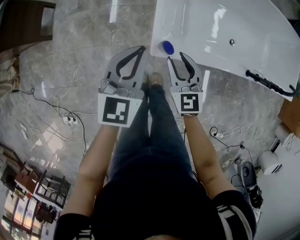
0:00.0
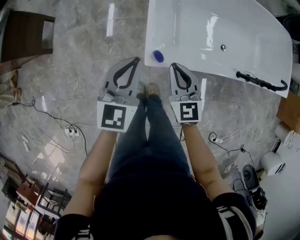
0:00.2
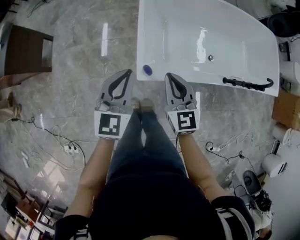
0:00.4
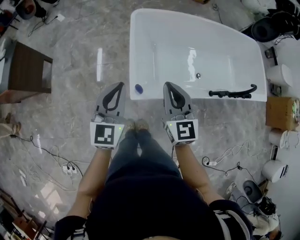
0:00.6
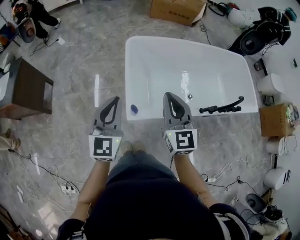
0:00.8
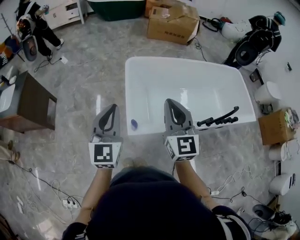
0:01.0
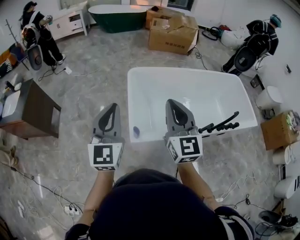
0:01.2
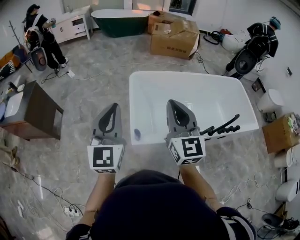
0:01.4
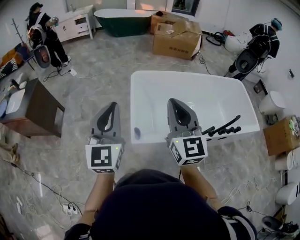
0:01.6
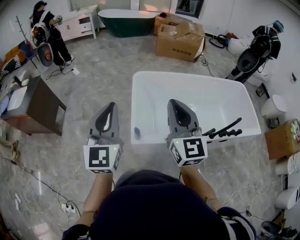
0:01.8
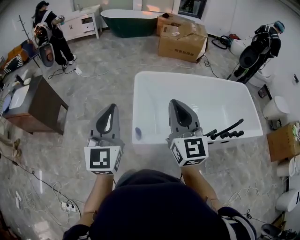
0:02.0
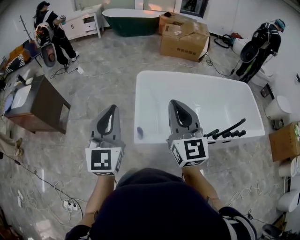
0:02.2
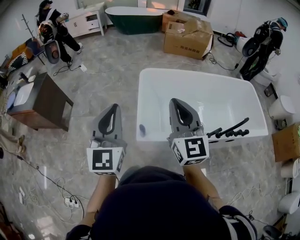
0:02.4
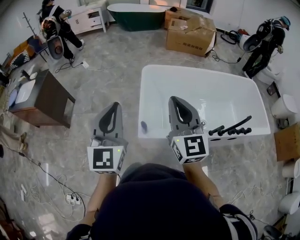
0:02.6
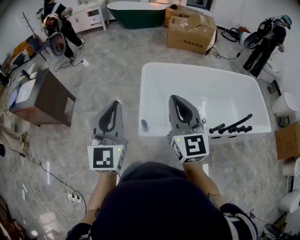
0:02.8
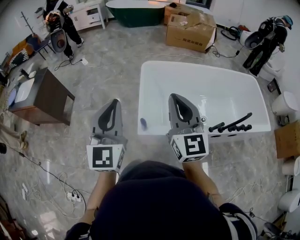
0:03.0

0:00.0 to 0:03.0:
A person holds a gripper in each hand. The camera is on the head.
0:00.0 to 0:01.6: The two grippers go about 40 cm upward. The right gripper changes its angle by roughly 30 degrees, and closes its fingers; the left gripper turns by some 30 degrees.
0:01.6 to 0:03.0: The grippers stay close to where they were, moving slightly.

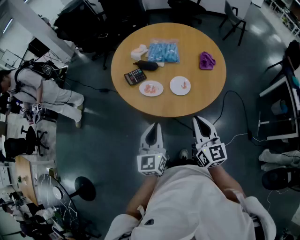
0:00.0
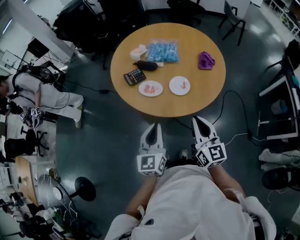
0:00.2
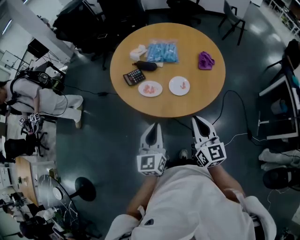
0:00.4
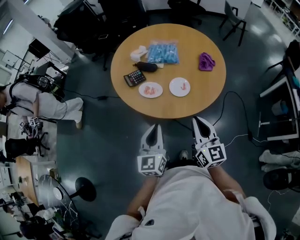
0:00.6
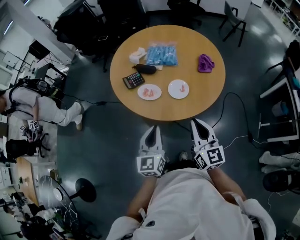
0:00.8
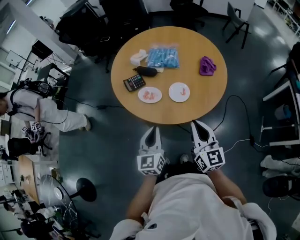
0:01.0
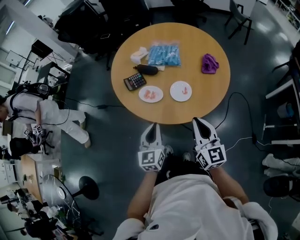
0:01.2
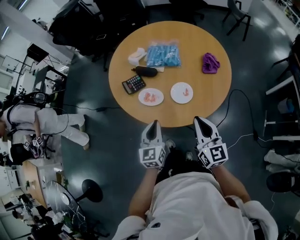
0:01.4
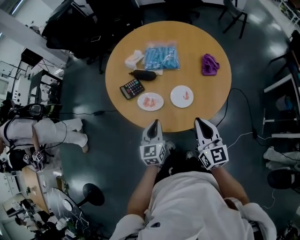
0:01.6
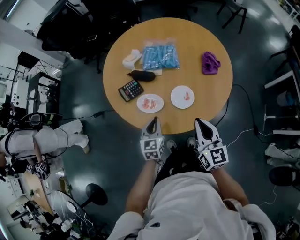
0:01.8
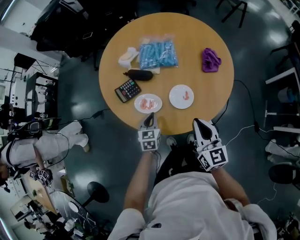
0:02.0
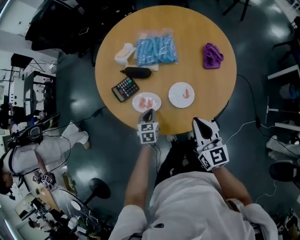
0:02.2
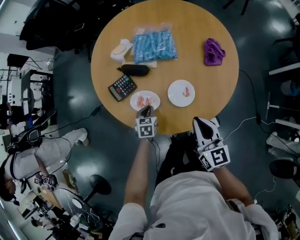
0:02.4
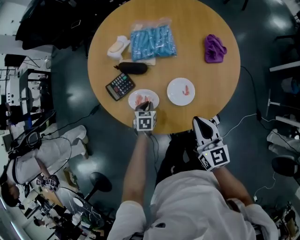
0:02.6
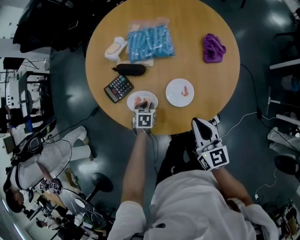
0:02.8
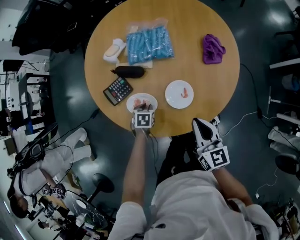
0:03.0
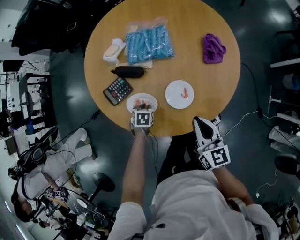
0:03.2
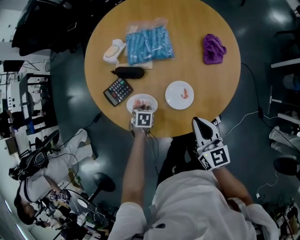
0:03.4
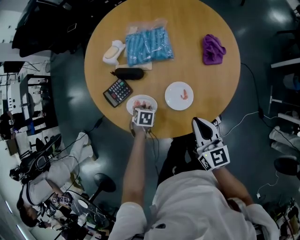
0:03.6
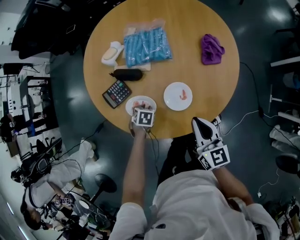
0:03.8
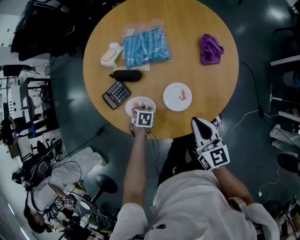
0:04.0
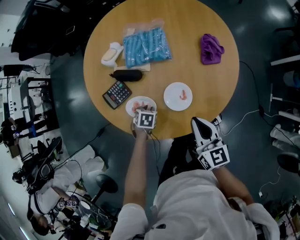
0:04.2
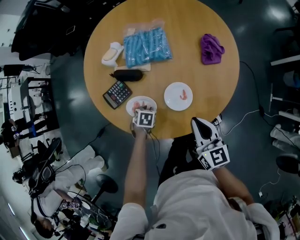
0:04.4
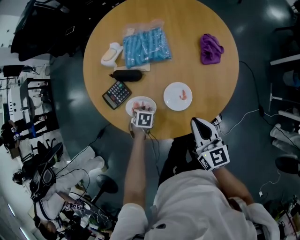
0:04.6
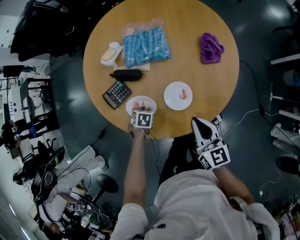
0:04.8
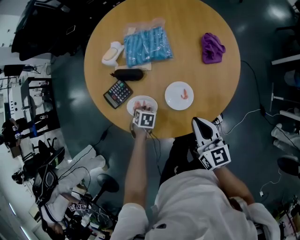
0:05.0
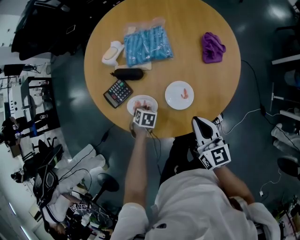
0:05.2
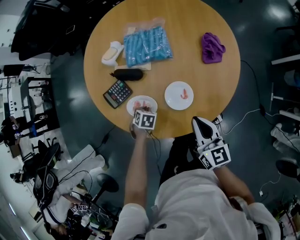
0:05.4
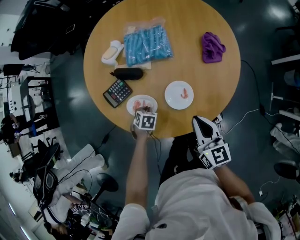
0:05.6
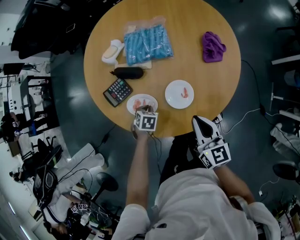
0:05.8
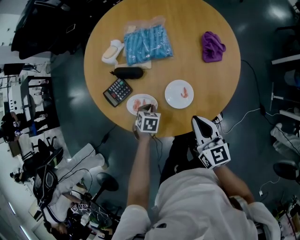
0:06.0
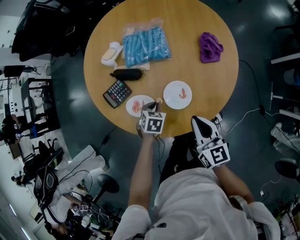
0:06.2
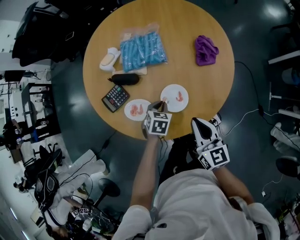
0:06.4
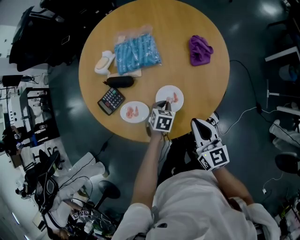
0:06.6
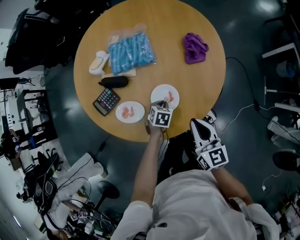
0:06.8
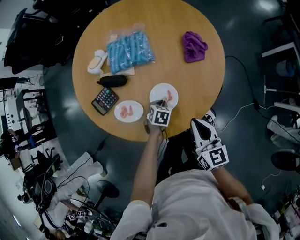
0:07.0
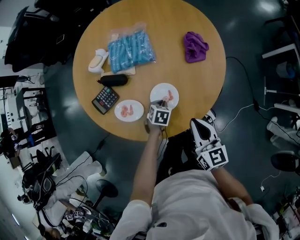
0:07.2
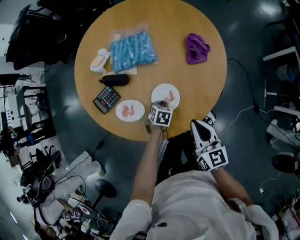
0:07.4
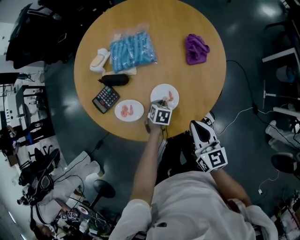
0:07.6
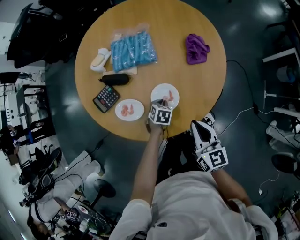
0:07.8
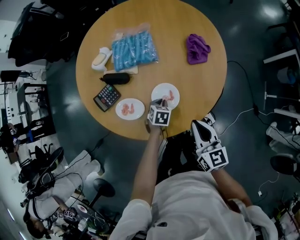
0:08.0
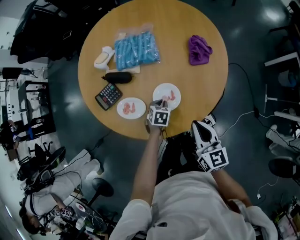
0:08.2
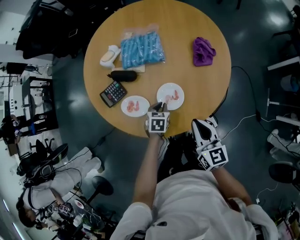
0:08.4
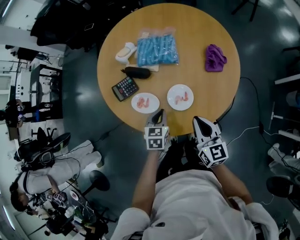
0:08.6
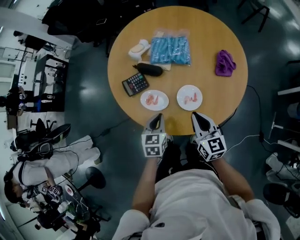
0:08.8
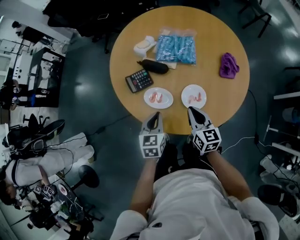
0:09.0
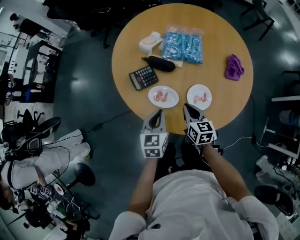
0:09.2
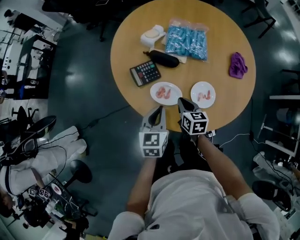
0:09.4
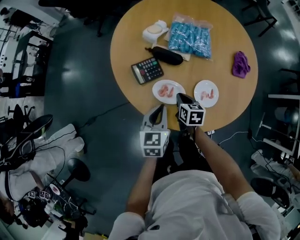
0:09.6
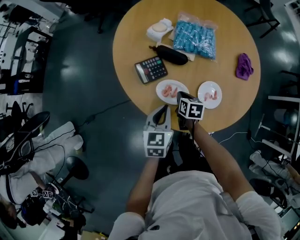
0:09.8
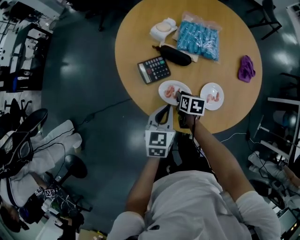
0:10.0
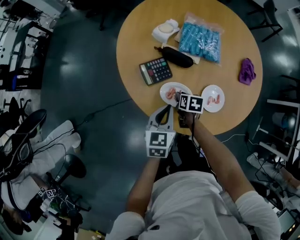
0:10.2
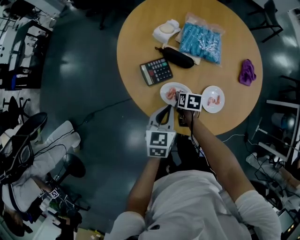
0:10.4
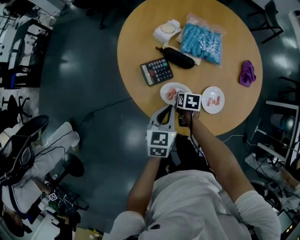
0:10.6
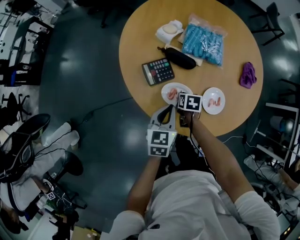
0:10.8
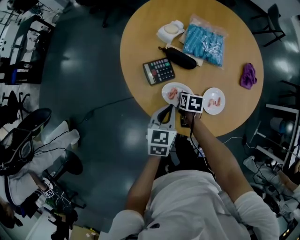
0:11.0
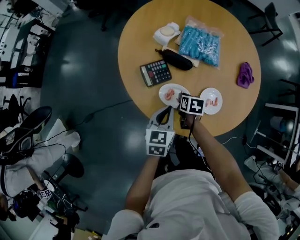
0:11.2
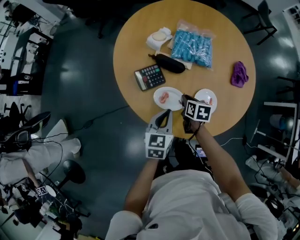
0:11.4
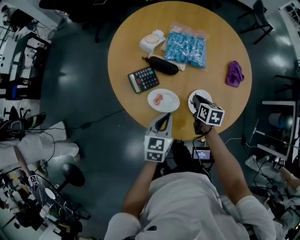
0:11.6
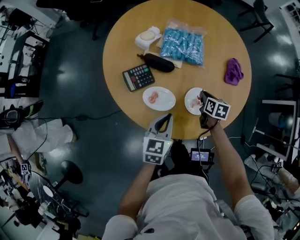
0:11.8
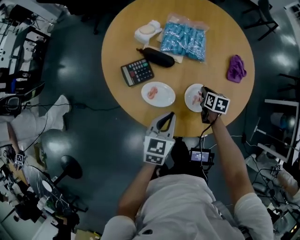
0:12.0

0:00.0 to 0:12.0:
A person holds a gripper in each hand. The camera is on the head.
0:00.0 to 0:01.6: The right gripper goes about 10 cm forward. Meanwhile the left gripper moves forward and downward, roughly 20 cm.
0:01.6 to 0:03.0: The right gripper shifts approximately 15 cm downward and forward; the left gripper travels downward and forward by approximately 25 cm, and tips its fingers downward by approximately 50 degrees.
0:03.0 to 0:06.0: The grippers make only small movements.
0:06.0 to 0:07.6: The left gripper goes about 15 cm to the right. The right gripper heads to the right, covering approximately 5 cm.
0:07.6 to 0:09.0: The right gripper is displaced to the left by some 15 cm. Meanwhile the left gripper moves upward, to the left and backward, approximately 30 cm, and points its fingers some 30 degrees further upward.
0:09.0 to 0:10.4: The left gripper travels to the left and forward by approximately 10 cm. The right gripper goes roughly 25 cm downward, to the left and forward, points its fingers approximately 40 degrees further downward, and opens its fingers.
0:10.4 to 0:12.0: The right gripper shifts some 20 cm to the right. Meanwhile the left gripper shifts roughly 10 cm to the right.

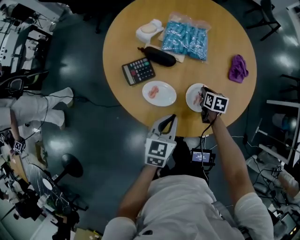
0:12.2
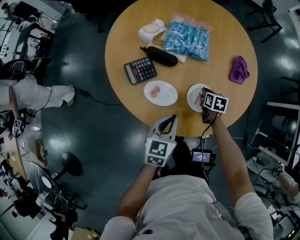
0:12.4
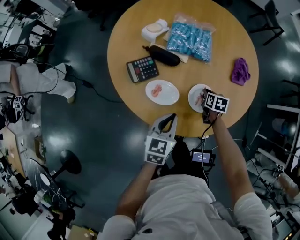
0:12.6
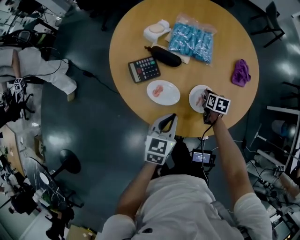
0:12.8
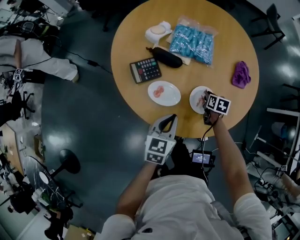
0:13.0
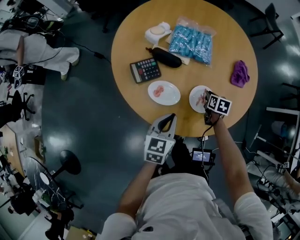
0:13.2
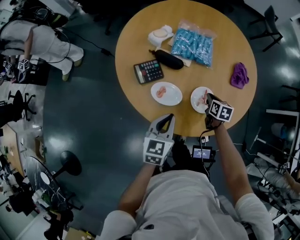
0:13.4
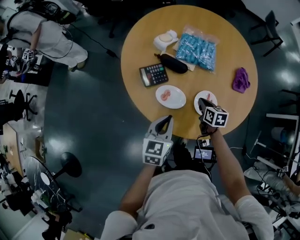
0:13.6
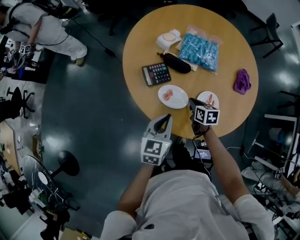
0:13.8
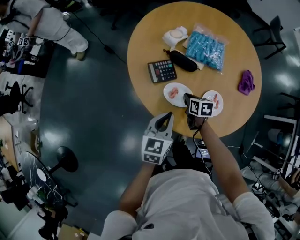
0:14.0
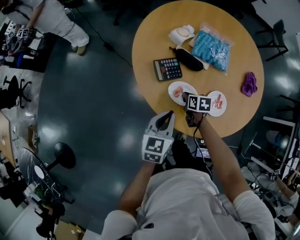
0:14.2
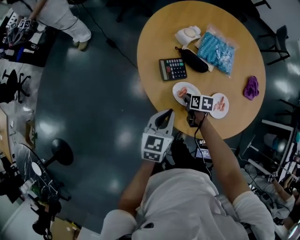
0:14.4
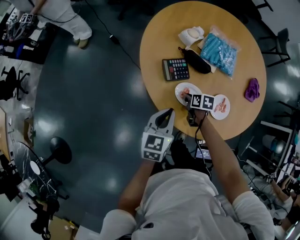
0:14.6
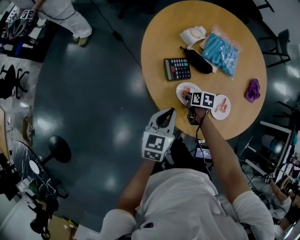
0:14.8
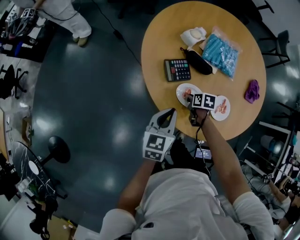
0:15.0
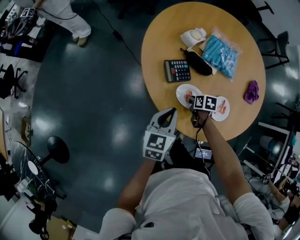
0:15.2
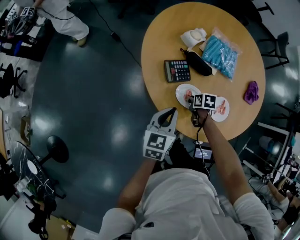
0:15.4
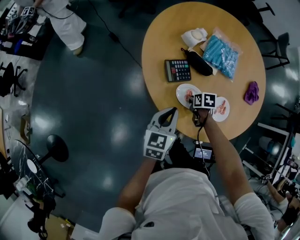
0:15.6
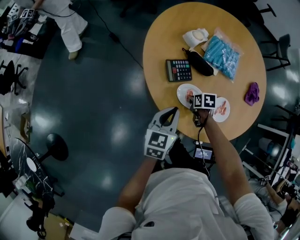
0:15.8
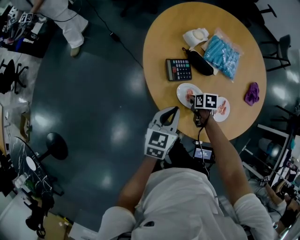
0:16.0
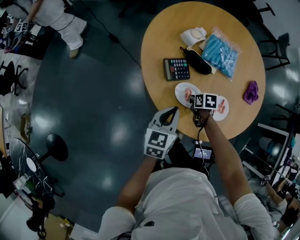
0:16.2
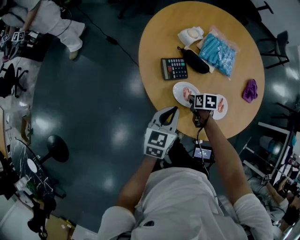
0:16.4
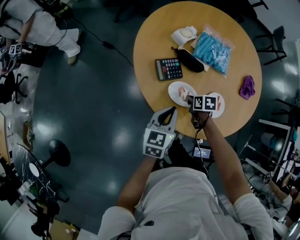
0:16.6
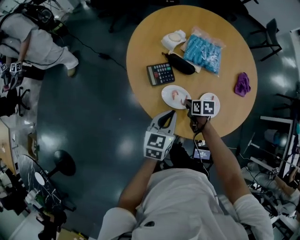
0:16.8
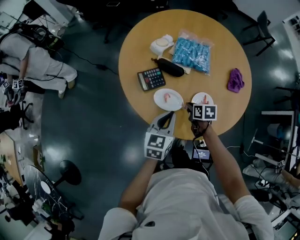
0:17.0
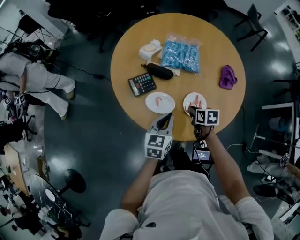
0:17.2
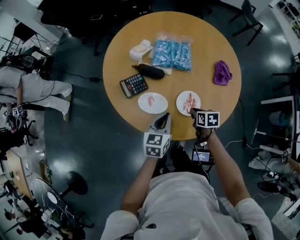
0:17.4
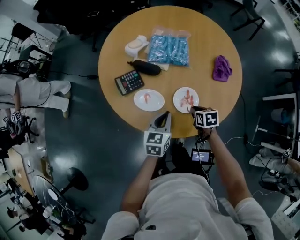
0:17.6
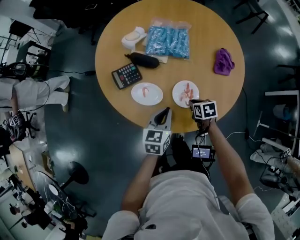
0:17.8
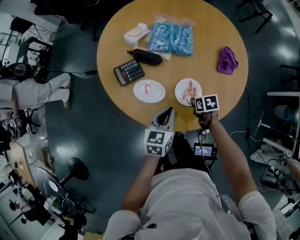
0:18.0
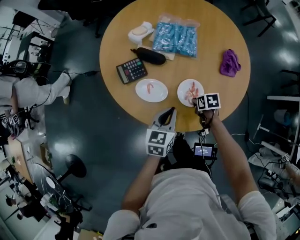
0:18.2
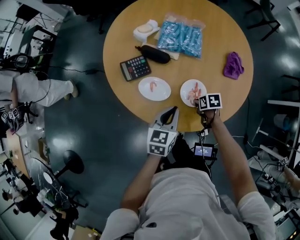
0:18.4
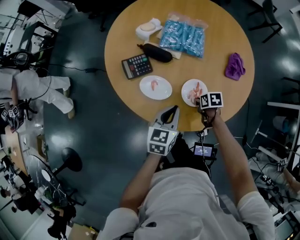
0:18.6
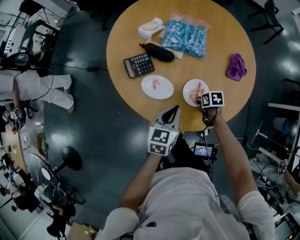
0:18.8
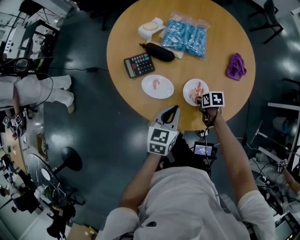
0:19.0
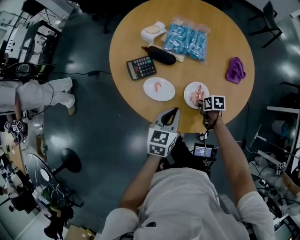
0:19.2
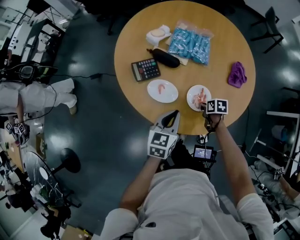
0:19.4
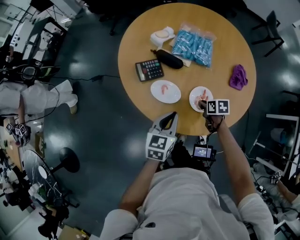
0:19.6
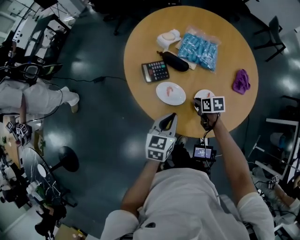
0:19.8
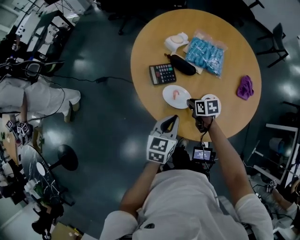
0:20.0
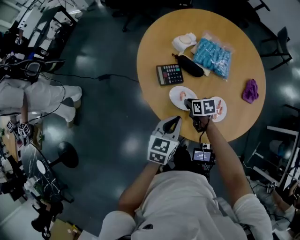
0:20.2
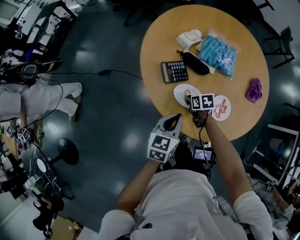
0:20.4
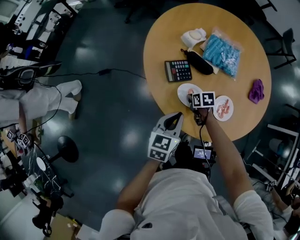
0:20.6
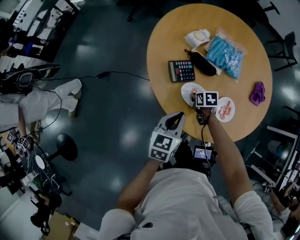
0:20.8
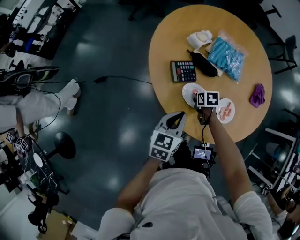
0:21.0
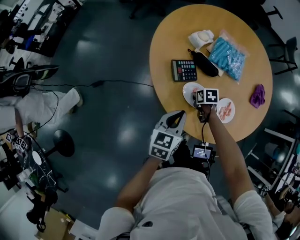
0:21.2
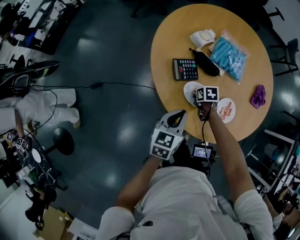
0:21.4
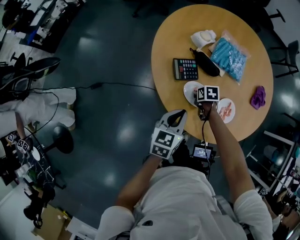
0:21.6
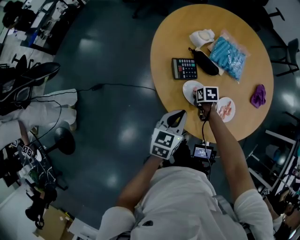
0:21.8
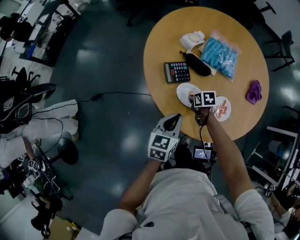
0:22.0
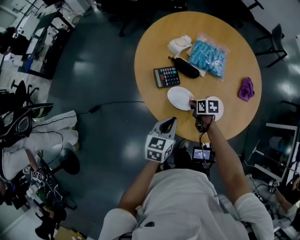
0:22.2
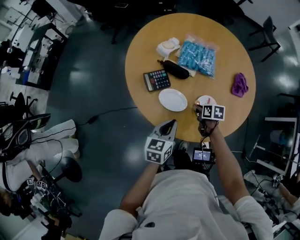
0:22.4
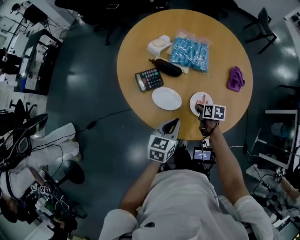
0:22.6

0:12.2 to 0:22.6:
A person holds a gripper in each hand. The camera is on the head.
0:12.2 to 0:13.6: The left gripper goes some 5 cm to the left. The right gripper travels to the left, upward and backward by roughly 10 cm.
0:13.6 to 0:15.2: The left gripper heads to the left, covering roughly 10 cm. Meanwhile the right gripper travels to the left and downward by roughly 15 cm, and changes its angle by approximately 20 degrees.
0:15.2 to 0:16.6: The grippers move only a little.
0:16.6 to 0:18.2: Both grippers move to the right, some 20 cm.
0:18.2 to 0:19.6: The right gripper shifts by roughly 5 cm. The left gripper travels to the left by roughly 5 cm.
0:19.6 to 0:21.2: The left gripper heads to the left and forward, covering approximately 15 cm. The right gripper goes approximately 20 cm to the left and forward.
0:21.2 to 0:22.6: The right gripper travels to the right and backward by about 20 cm, and changes its angle by roughly 30 degrees; the left gripper goes roughly 15 cm to the right.
